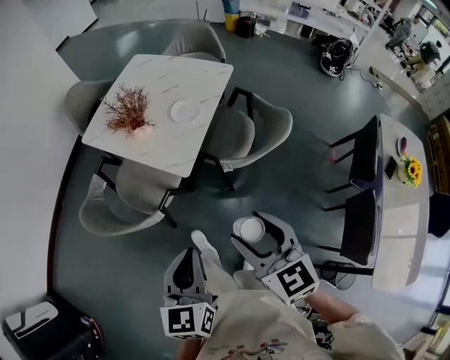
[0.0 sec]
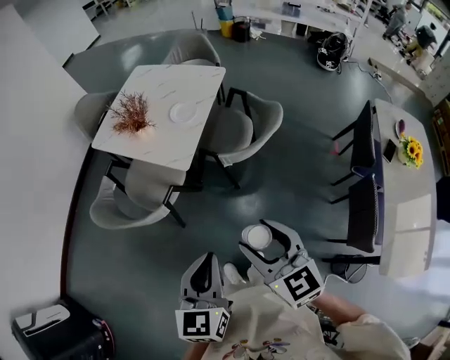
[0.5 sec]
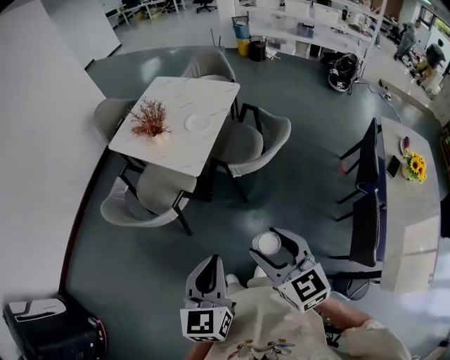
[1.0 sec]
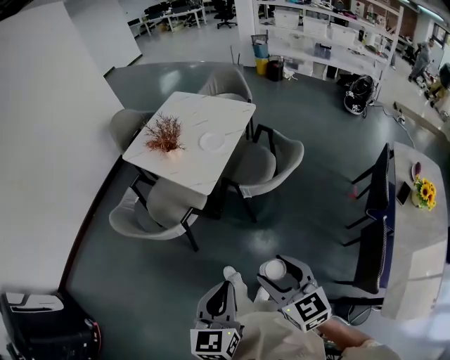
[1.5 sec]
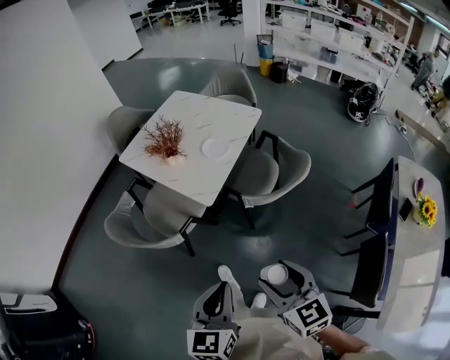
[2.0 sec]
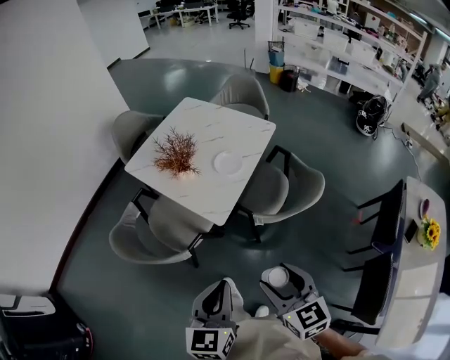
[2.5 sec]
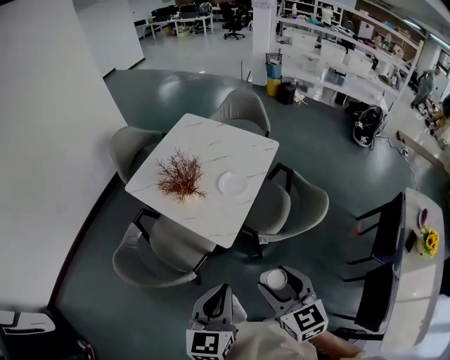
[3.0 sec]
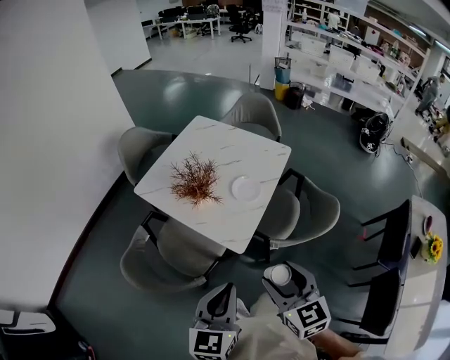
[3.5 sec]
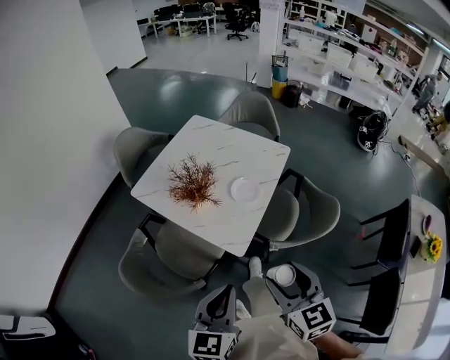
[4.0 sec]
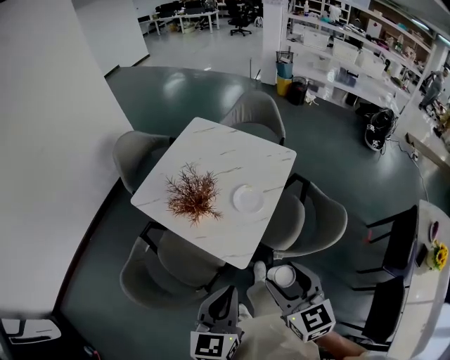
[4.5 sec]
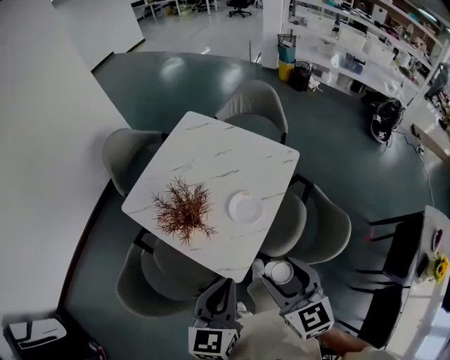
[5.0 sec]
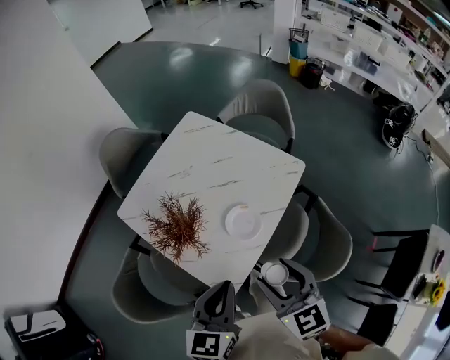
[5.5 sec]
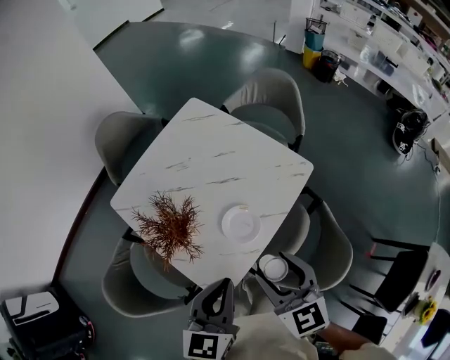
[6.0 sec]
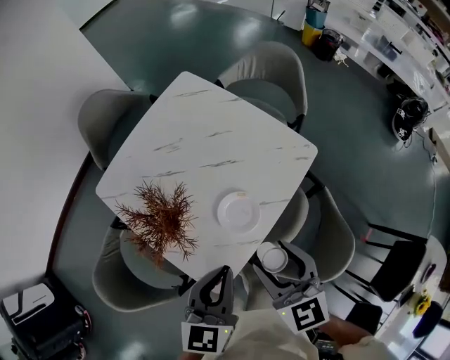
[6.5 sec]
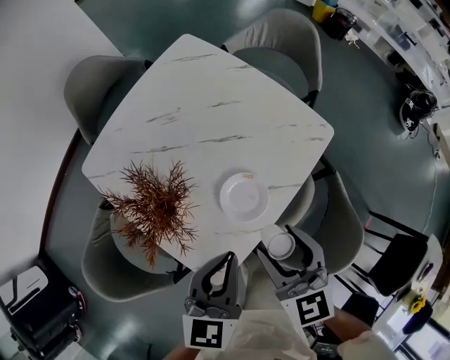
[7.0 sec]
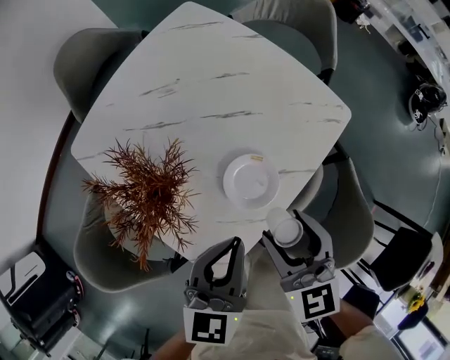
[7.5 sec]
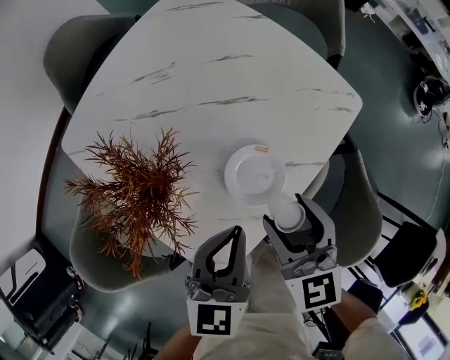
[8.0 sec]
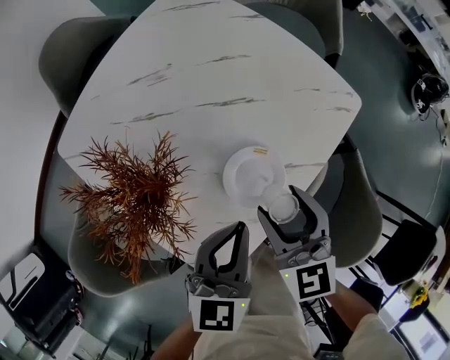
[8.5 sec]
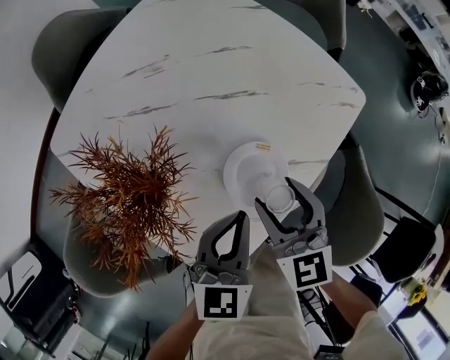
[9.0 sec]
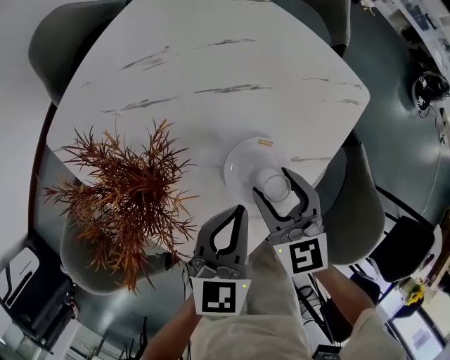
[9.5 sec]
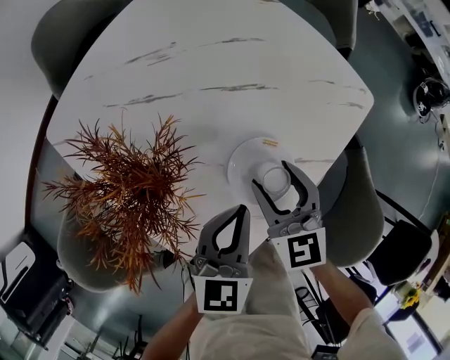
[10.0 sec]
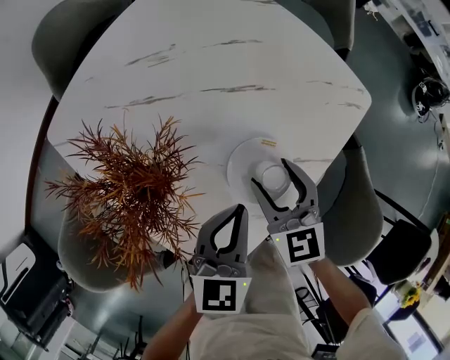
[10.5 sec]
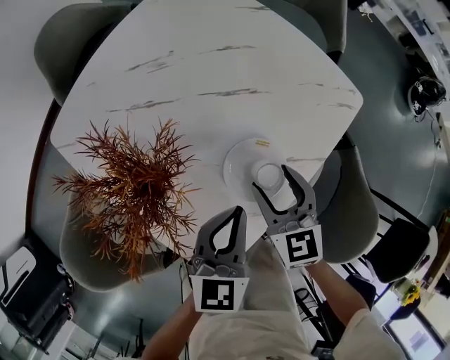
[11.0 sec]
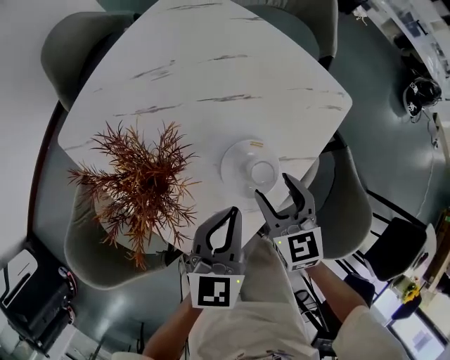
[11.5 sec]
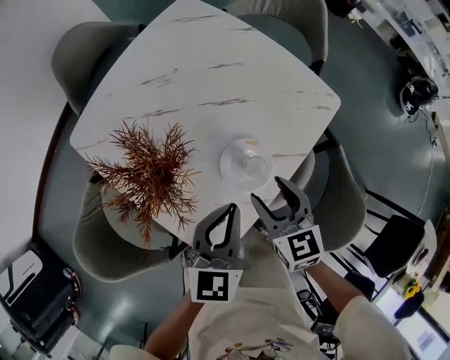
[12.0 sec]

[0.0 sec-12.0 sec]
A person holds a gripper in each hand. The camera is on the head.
0.0 sec to 2.0 sec: The two grippers go roughly 10 cm backward and to the right.
2.0 sec to 4.0 sec: Both grippers move forward and to the left, some 25 cm.
4.0 sec to 6.0 sec: The left gripper moves forward and to the right, about 30 cm. The right gripper shifts approximately 30 cm forward.
6.0 sec to 8.0 sec: The left gripper heads downward, covering some 20 cm, while the right gripper shifts about 20 cm downward and forward.
8.0 sec to 10.0 sec: The grippers both shift downward by some 5 cm.
10.0 sec to 12.0 sec: The right gripper shifts approximately 5 cm upward. The left gripper heads upward, covering roughly 10 cm.

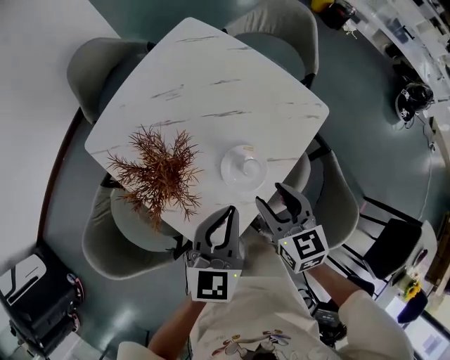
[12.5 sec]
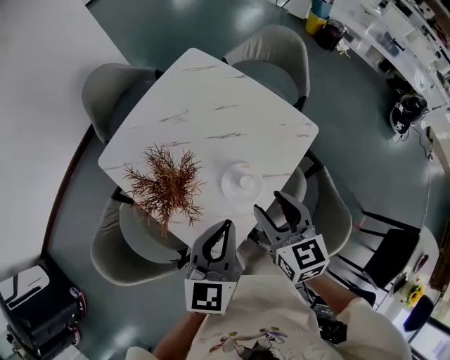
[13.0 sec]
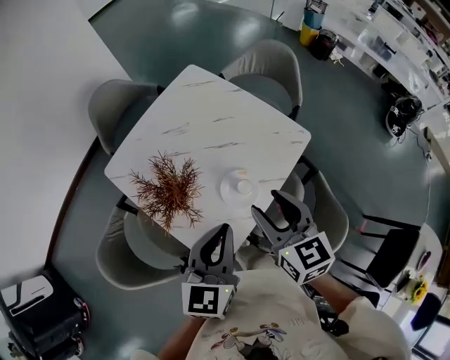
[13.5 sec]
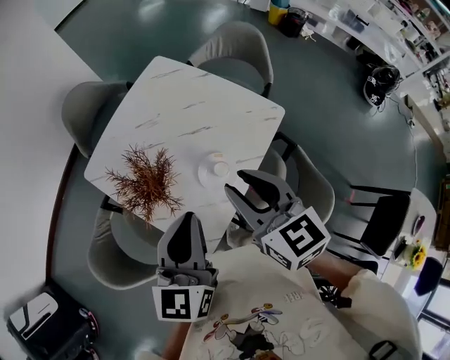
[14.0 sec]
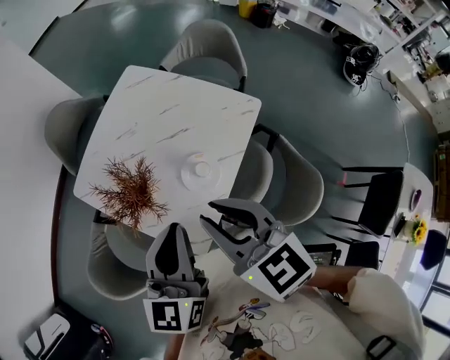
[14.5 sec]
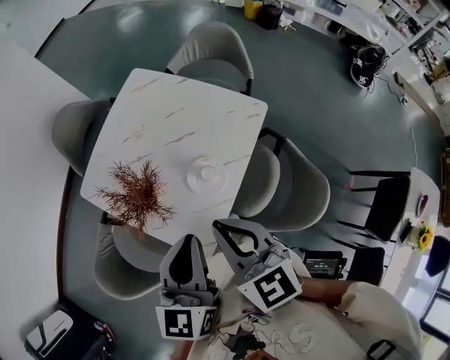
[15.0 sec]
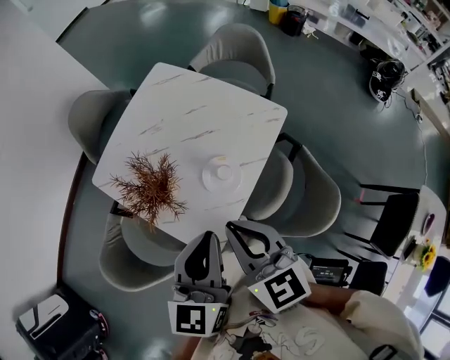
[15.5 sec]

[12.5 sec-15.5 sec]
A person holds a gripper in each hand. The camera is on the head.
12.5 sec to 14.0 sec: The two grippers go approximately 15 cm upward. The right gripper closes up.
14.0 sec to 15.5 sec: The right gripper goes about 10 cm backward, and closes its fingers. Meanwhile the left gripper ends up about 5 cm from where it was.

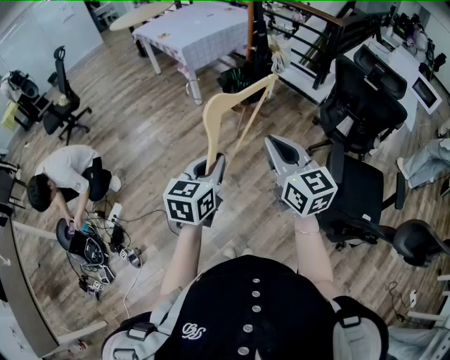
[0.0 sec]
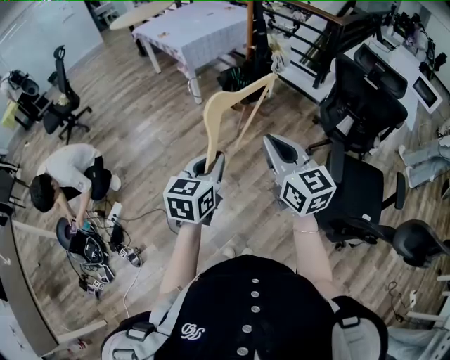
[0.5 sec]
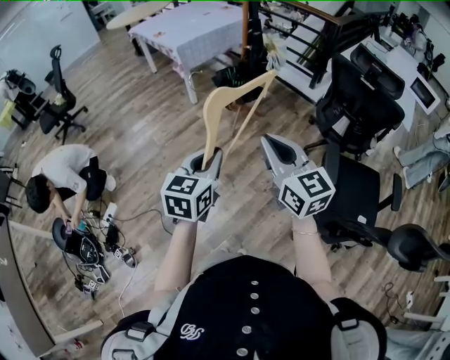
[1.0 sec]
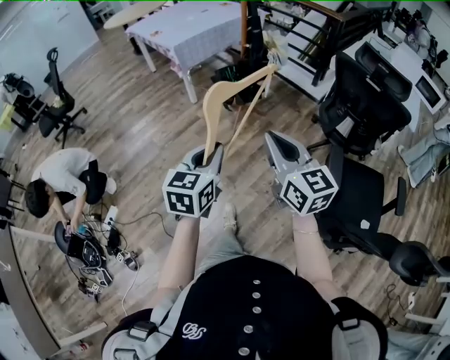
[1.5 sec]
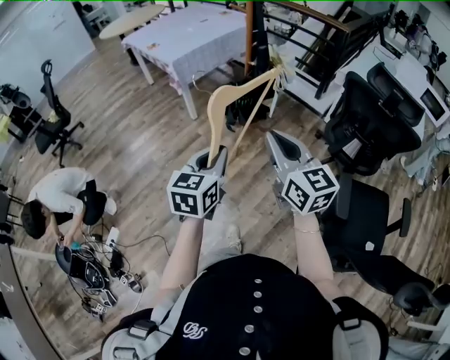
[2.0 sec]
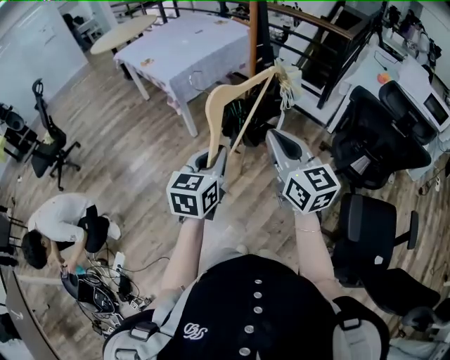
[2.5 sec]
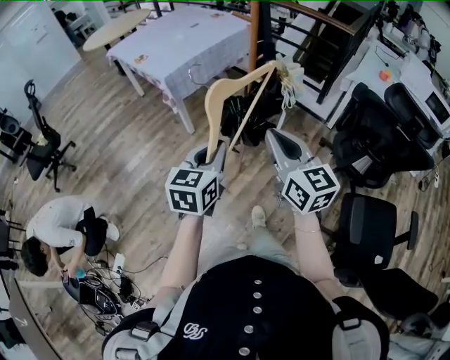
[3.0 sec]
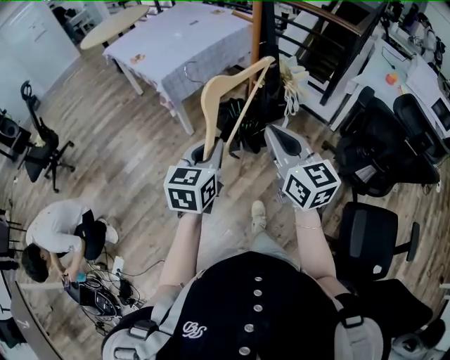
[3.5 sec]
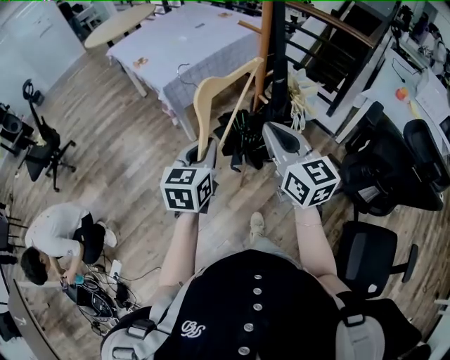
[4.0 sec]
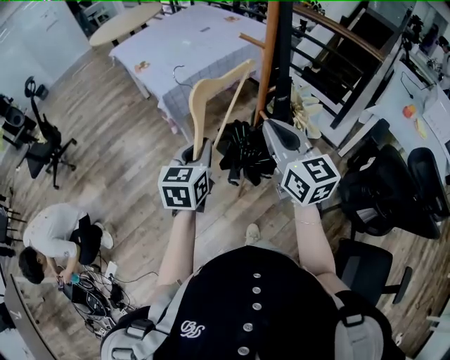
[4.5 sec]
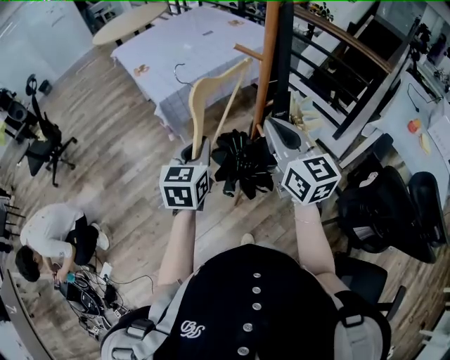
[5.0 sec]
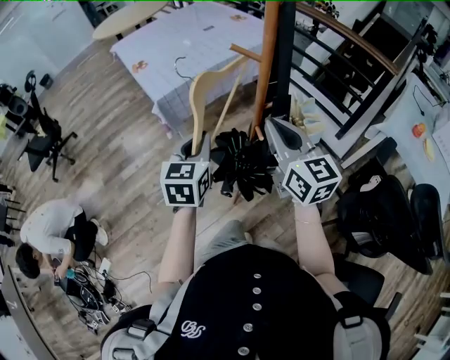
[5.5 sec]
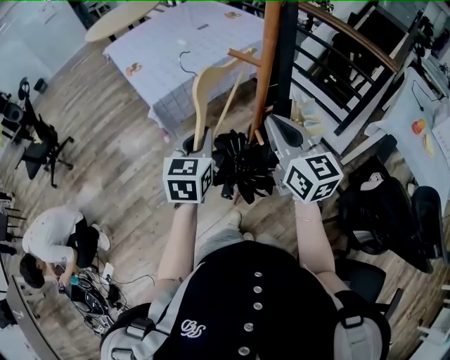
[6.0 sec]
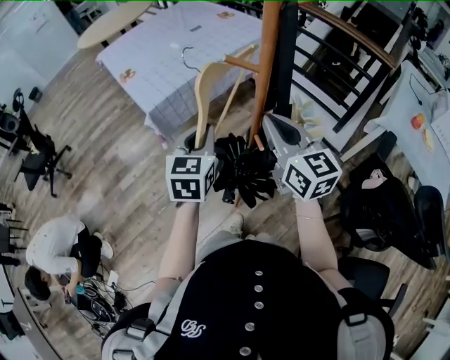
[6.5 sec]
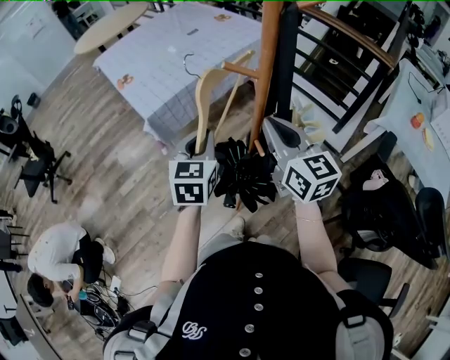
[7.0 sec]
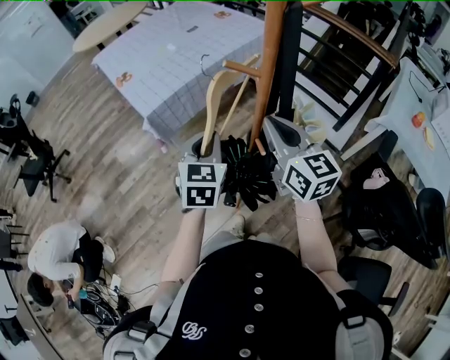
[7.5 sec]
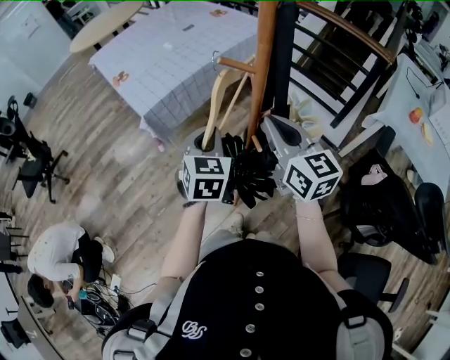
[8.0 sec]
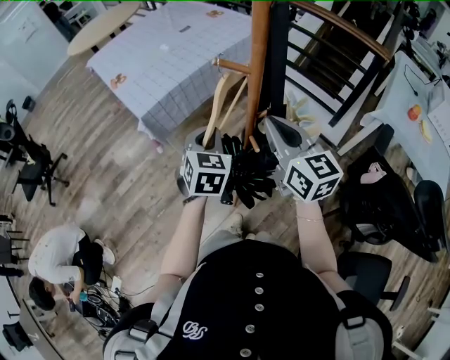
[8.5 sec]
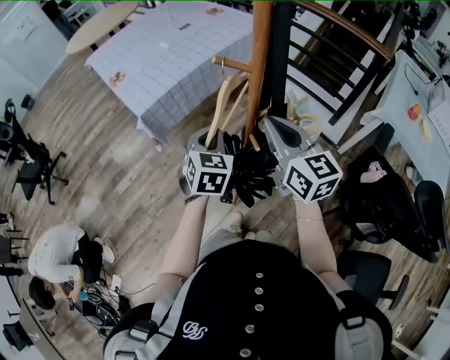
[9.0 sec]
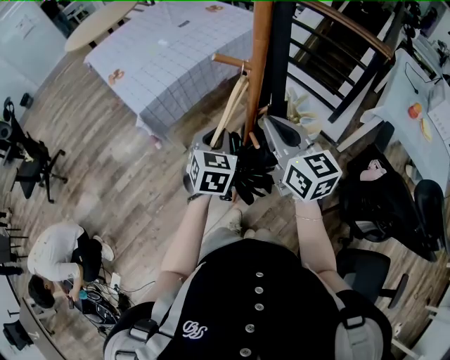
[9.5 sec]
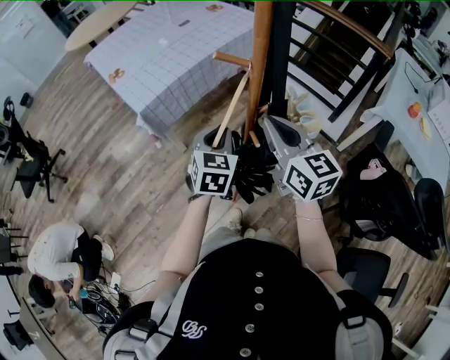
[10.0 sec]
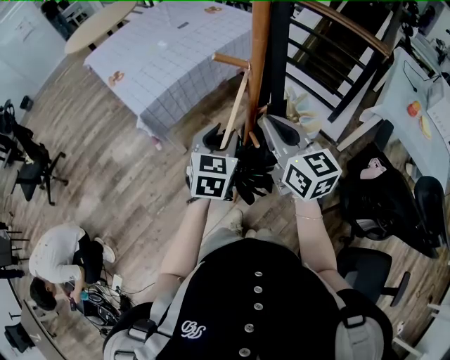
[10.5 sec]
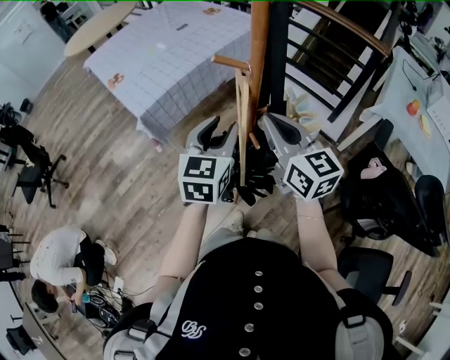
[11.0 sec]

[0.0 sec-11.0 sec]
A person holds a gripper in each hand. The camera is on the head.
0.0 sec to 2.0 sec: Both grippers move forward, about 20 cm.
2.0 sec to 3.5 sec: The two grippers go about 25 cm forward.
3.5 sec to 5.5 sec: Both grippers move forward, some 25 cm.
5.5 sec to 7.5 sec: The two grippers go about 10 cm forward.
7.5 sec to 9.0 sec: The left gripper ends up about 5 cm from where it was.
9.0 sec to 11.0 sec: The left gripper shifts approximately 5 cm upward, swivels roughly 20 degrees, and opens.

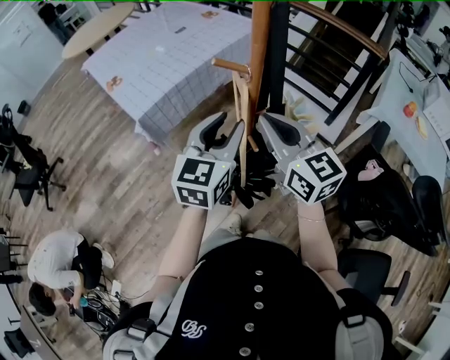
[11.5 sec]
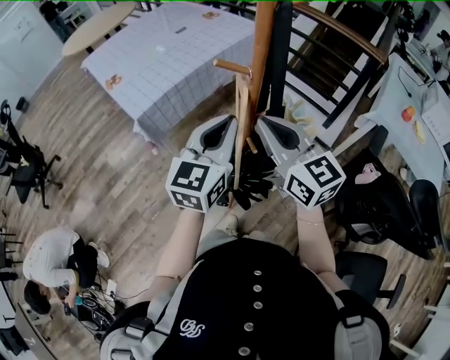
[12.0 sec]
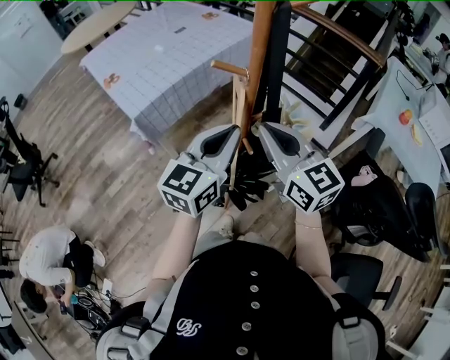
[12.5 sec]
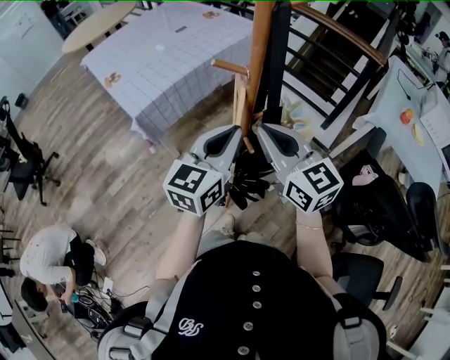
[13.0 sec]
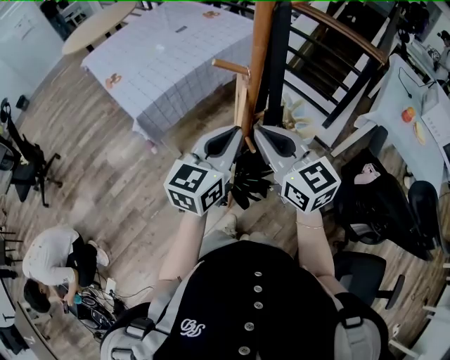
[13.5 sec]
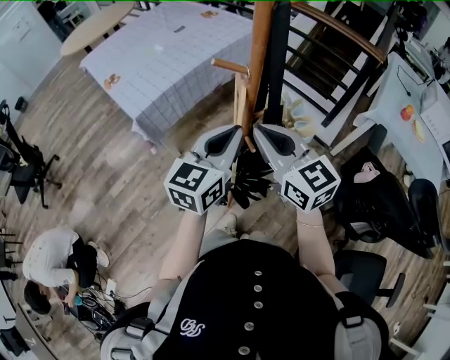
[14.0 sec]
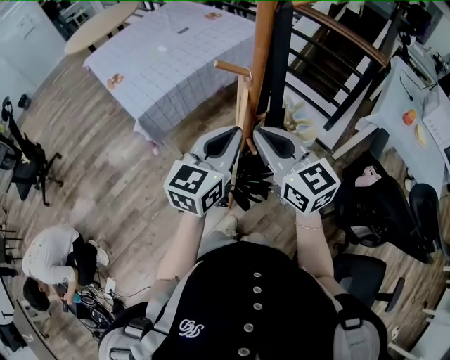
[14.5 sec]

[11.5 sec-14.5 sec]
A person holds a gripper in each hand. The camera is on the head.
11.5 sec to 13.0 sec: The left gripper closes.
13.0 sec to 14.5 sec: The grippers stay close to where they were, moving slightly.
